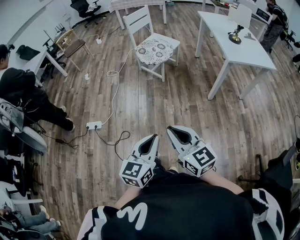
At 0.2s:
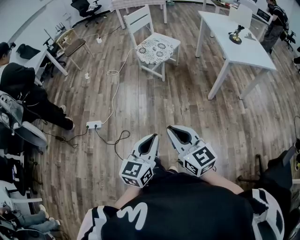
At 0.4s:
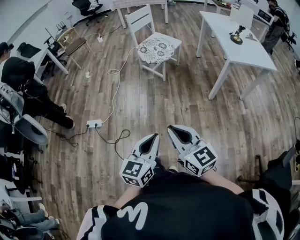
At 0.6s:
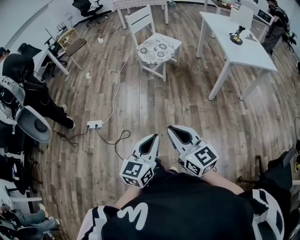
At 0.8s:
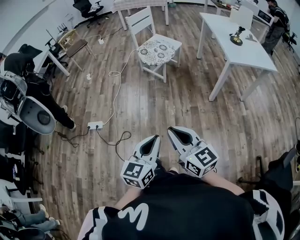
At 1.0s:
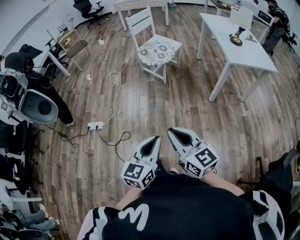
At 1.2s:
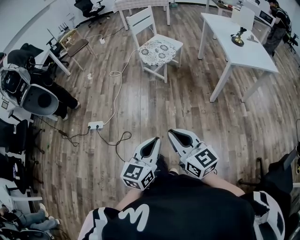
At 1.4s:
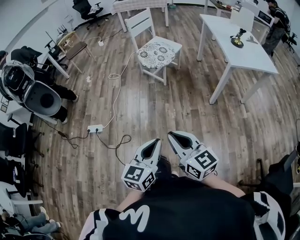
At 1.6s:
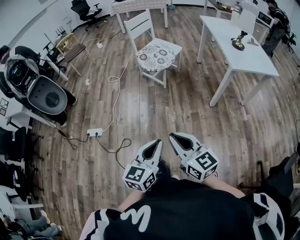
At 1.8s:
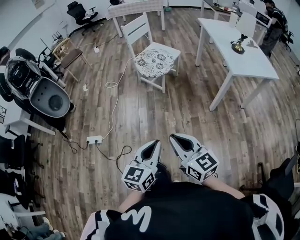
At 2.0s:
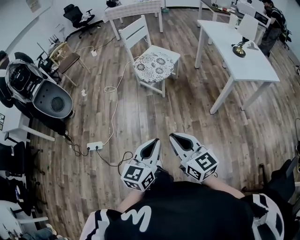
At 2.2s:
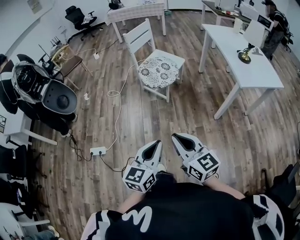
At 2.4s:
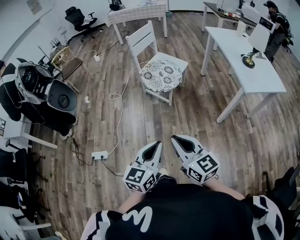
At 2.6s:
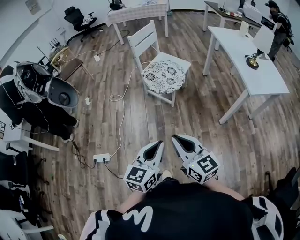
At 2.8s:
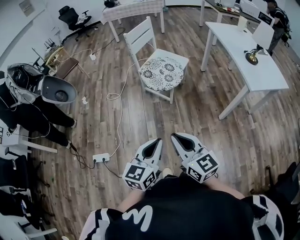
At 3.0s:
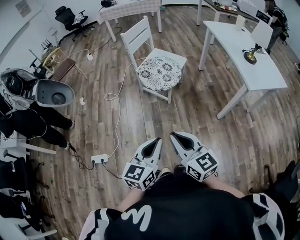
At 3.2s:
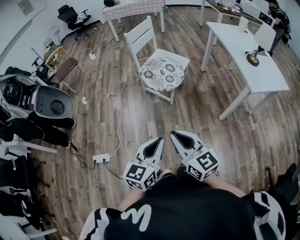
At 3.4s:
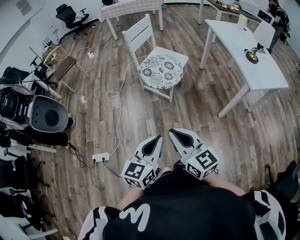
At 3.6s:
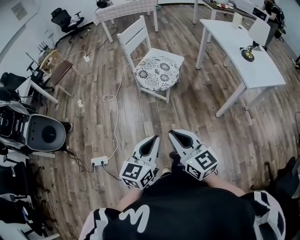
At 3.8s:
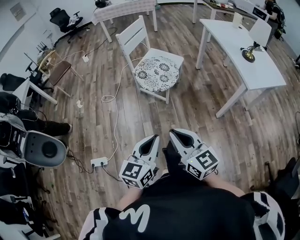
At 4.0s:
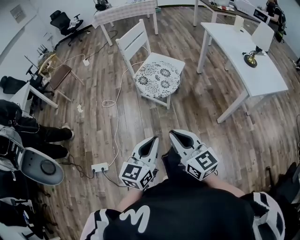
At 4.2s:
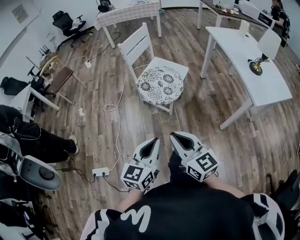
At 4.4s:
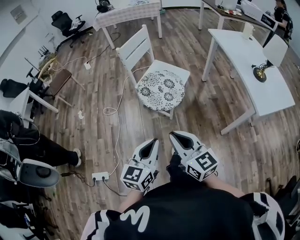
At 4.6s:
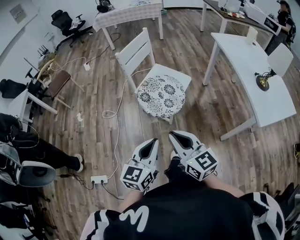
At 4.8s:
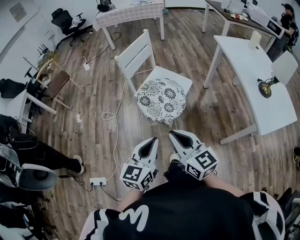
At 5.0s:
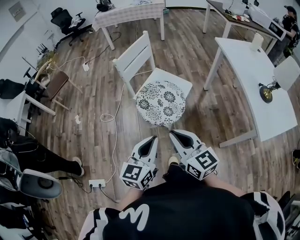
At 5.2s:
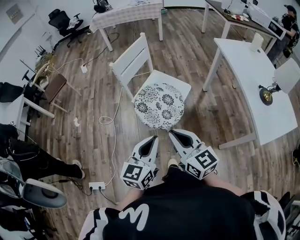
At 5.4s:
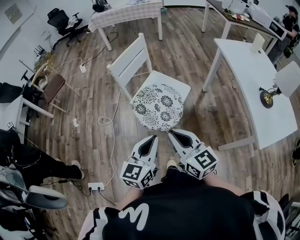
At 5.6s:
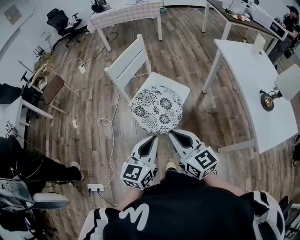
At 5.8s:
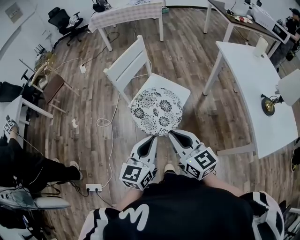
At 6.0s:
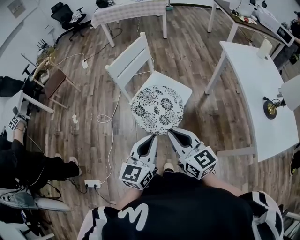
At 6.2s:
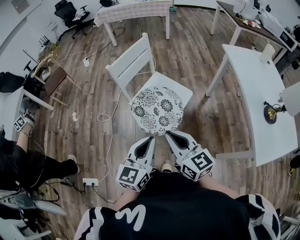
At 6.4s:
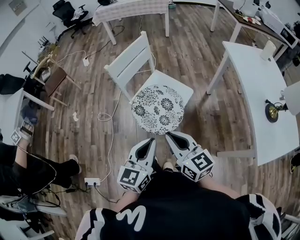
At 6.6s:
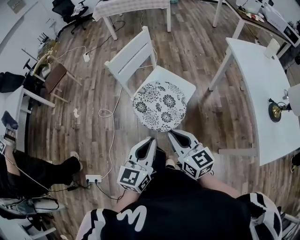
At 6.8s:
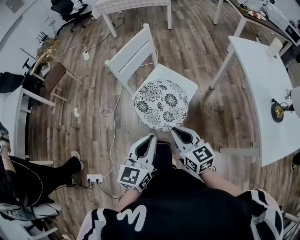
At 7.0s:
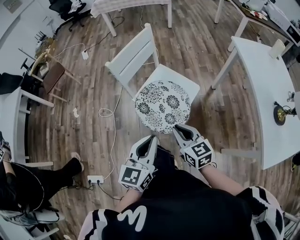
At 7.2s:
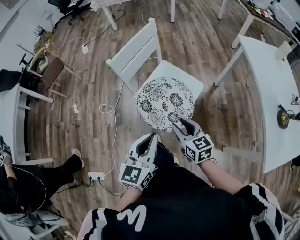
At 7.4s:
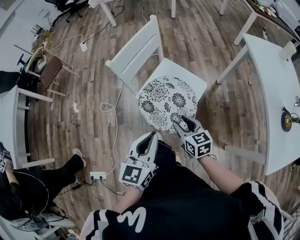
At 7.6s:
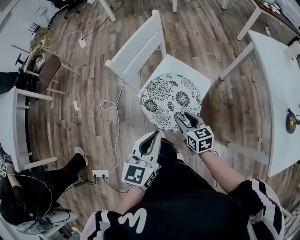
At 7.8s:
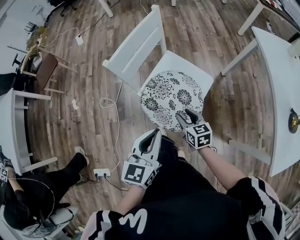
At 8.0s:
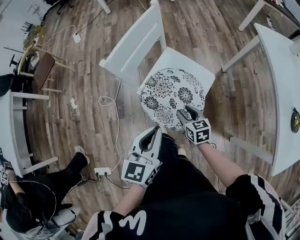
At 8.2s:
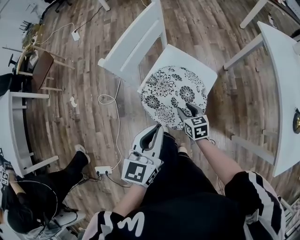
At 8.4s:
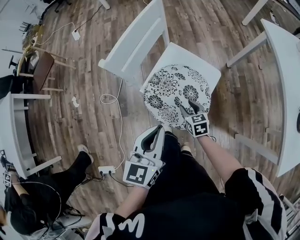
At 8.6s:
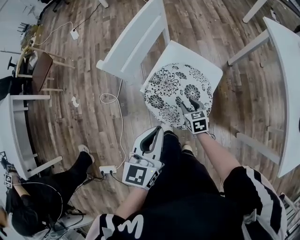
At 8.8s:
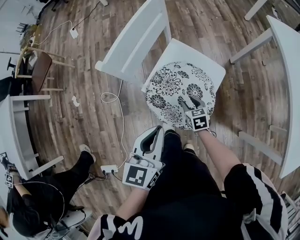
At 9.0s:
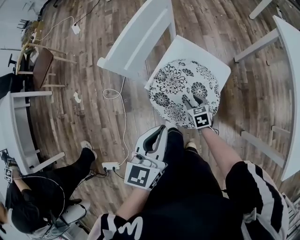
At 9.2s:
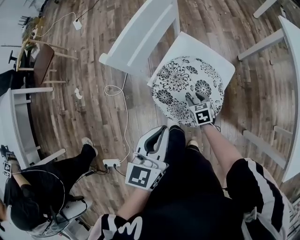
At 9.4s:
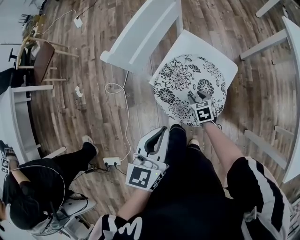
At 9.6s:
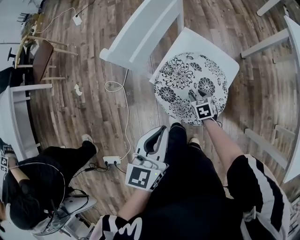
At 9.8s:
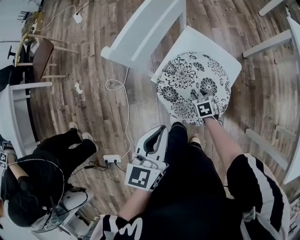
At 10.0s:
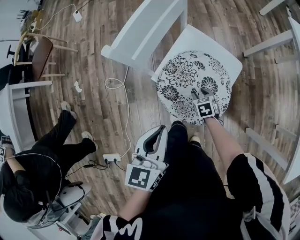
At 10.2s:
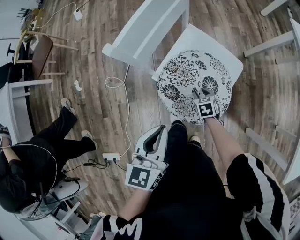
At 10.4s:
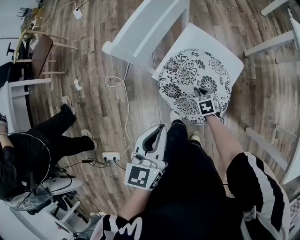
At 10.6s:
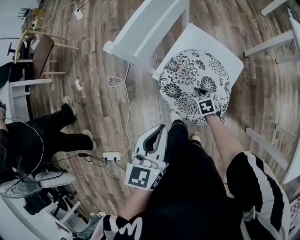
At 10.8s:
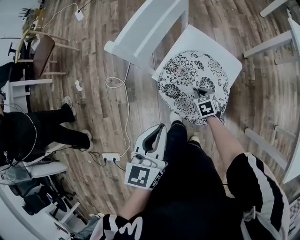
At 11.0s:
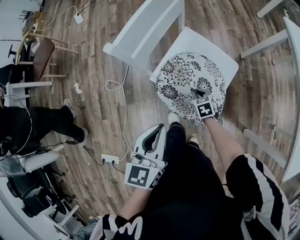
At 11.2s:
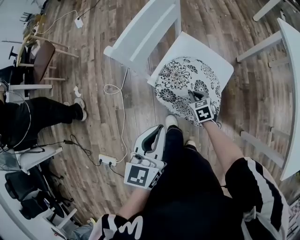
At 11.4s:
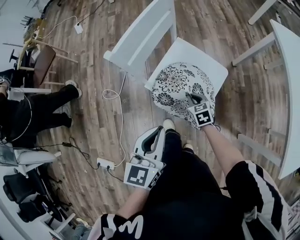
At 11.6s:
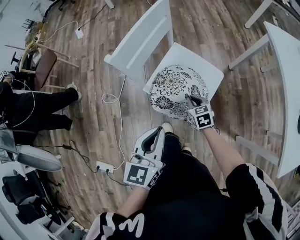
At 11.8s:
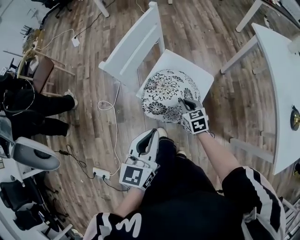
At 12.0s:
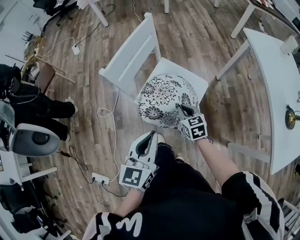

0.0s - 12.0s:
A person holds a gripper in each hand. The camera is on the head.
0.0s - 1.6s: The grippers move only a little.
1.6s - 3.0s: Both grippers move forward, roughly 25 cm.
3.0s - 4.4s: Both grippers move forward, approximately 20 cm.
4.4s - 6.0s: The grippers both shift forward by some 25 cm.
6.0s - 7.6s: The right gripper moves downward and forward, roughly 30 cm, rotates approximately 30 degrees, and opens; the left gripper travels forward, downward and to the left by about 15 cm.
7.6s - 9.0s: The left gripper travels forward and downward by approximately 10 cm; the right gripper heads downward and forward, covering about 20 cm.
9.0s - 10.4s: The left gripper ends up roughly 5 cm from where it was; the right gripper shifts roughly 5 cm downward, and closes.
10.4s - 12.0s: The left gripper travels upward and to the right by about 10 cm; the right gripper is displaced upward by roughly 20 cm, and swivels about 20 degrees.

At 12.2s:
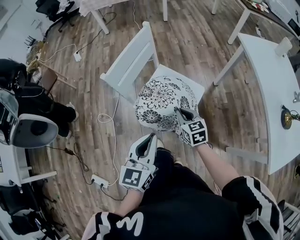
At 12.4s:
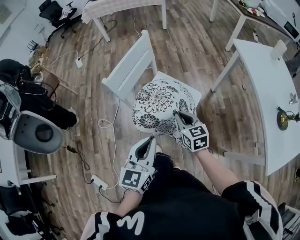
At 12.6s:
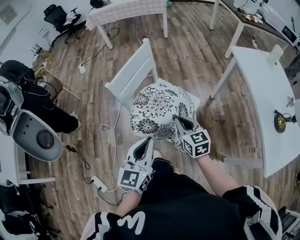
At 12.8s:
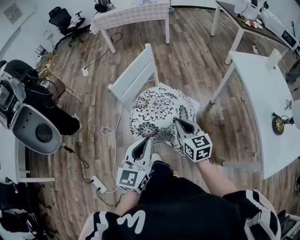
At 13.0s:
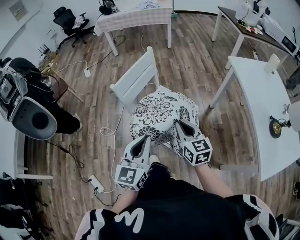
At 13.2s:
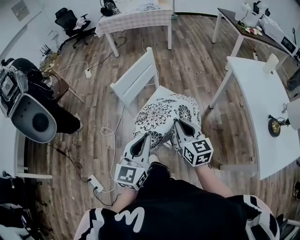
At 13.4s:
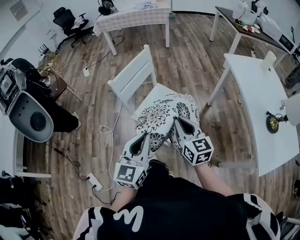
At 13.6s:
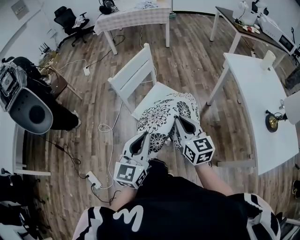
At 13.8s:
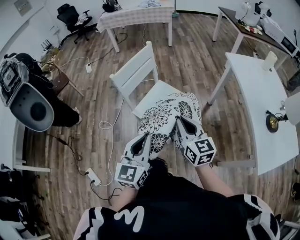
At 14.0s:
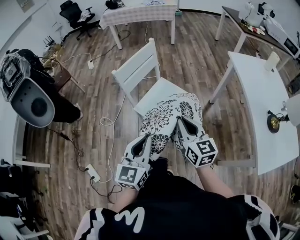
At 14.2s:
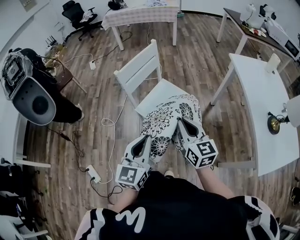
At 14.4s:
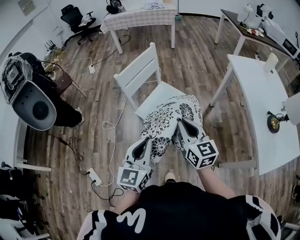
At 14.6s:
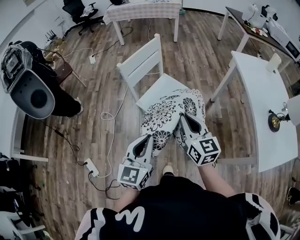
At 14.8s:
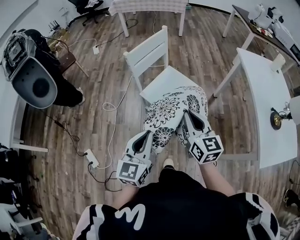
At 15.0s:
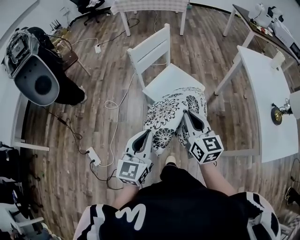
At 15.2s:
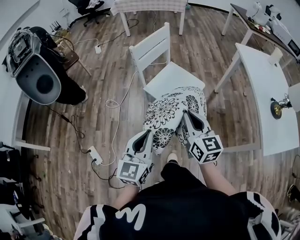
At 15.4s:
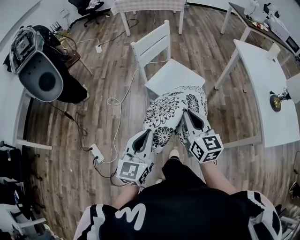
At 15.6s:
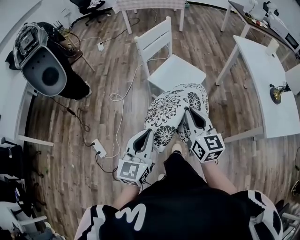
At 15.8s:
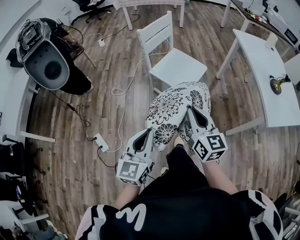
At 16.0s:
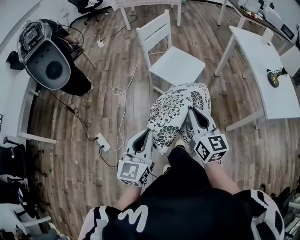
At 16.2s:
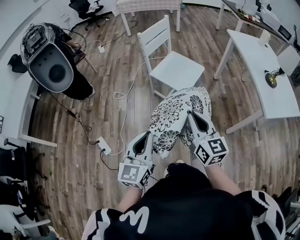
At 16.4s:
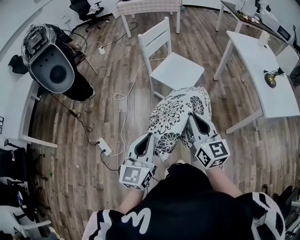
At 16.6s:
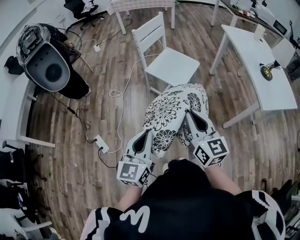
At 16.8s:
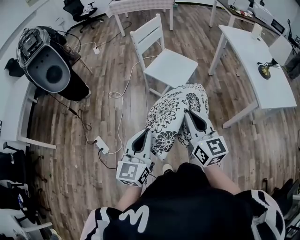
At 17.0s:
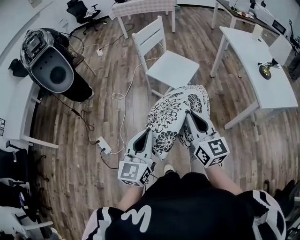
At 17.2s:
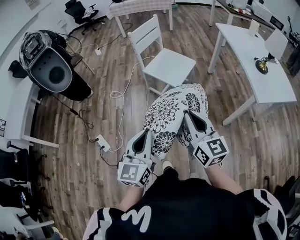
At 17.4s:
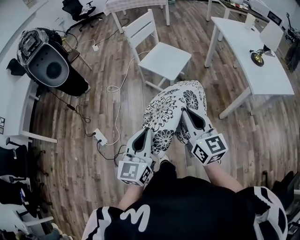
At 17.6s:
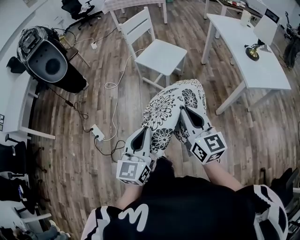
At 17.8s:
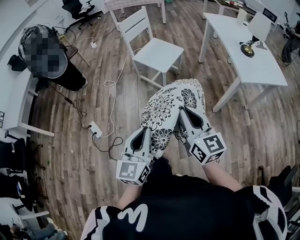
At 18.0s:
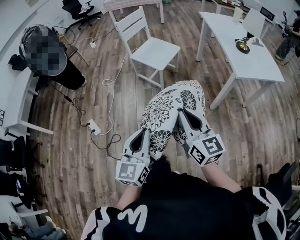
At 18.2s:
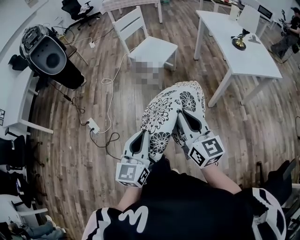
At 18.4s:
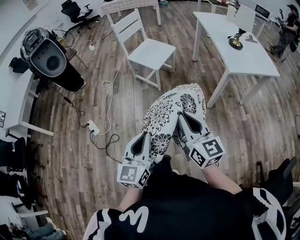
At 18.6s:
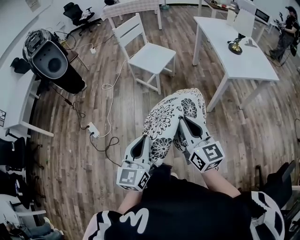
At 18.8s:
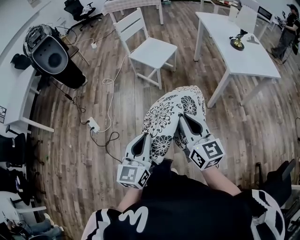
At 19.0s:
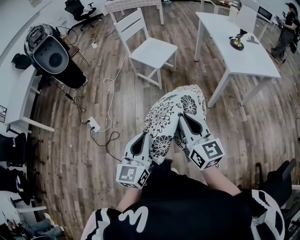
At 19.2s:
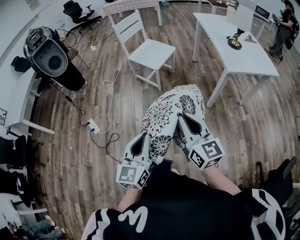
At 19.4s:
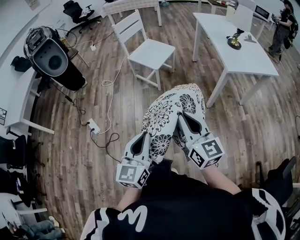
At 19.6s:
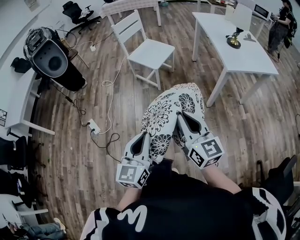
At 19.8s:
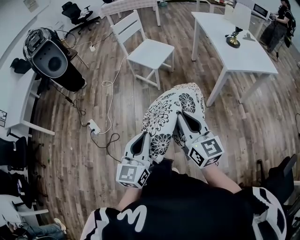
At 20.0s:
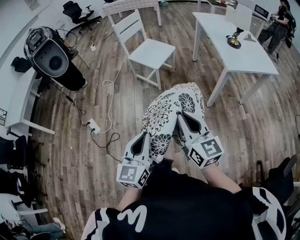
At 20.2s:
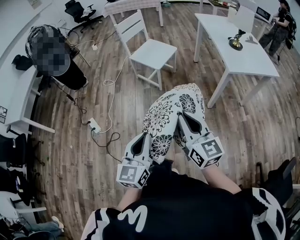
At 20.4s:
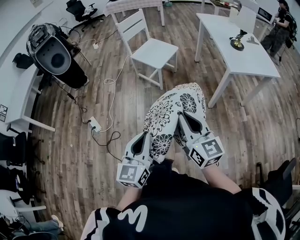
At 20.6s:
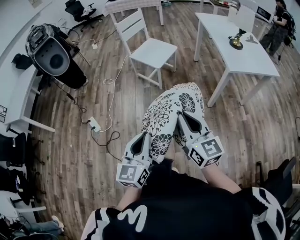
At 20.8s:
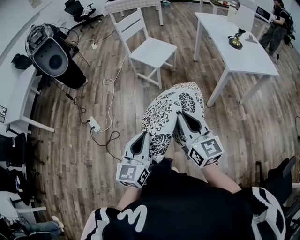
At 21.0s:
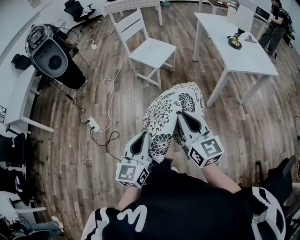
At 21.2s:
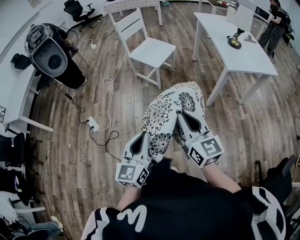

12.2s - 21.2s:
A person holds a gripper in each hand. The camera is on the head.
12.2s - 13.8s: The left gripper moves backward and upward, approximately 10 cm. Meanwhile the right gripper shifts some 25 cm upward and backward, and swivels roughly 20 degrees.
13.8s - 15.2s: Both grippers move backward and to the left, some 15 cm.
15.2s - 16.6s: The grippers both shift backward by about 25 cm.
16.6s - 18.2s: Both grippers travel together backward and to the right, approximately 30 cm.
18.2s - 19.8s: The left gripper moves roughly 5 cm.
19.8s - 21.2s: The grippers move only a little.

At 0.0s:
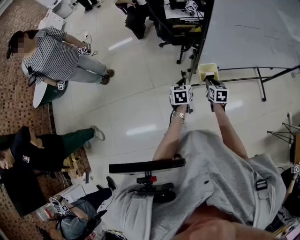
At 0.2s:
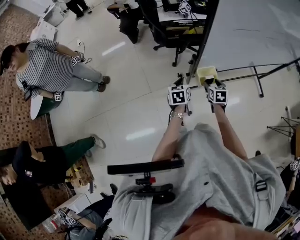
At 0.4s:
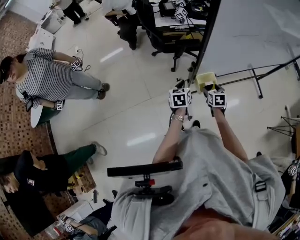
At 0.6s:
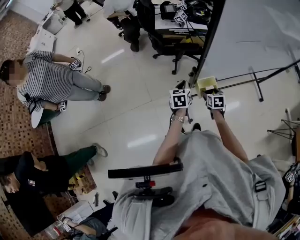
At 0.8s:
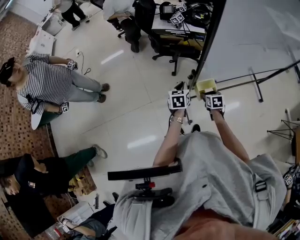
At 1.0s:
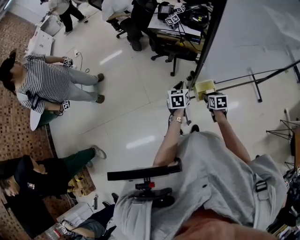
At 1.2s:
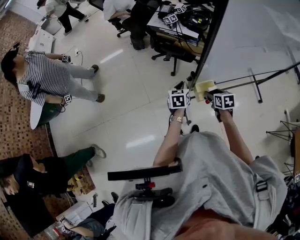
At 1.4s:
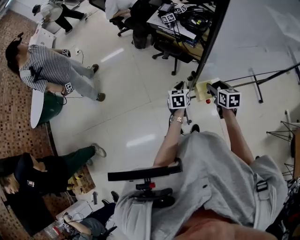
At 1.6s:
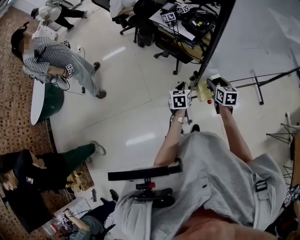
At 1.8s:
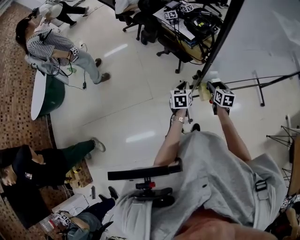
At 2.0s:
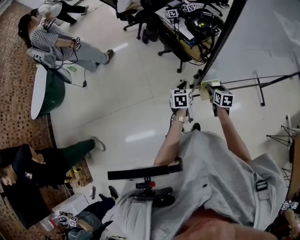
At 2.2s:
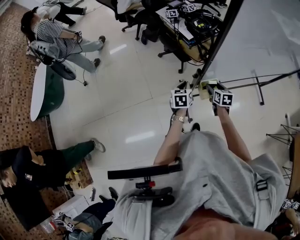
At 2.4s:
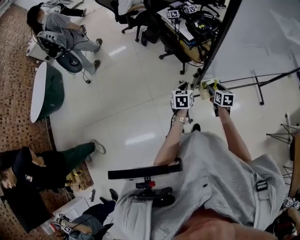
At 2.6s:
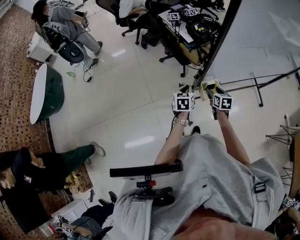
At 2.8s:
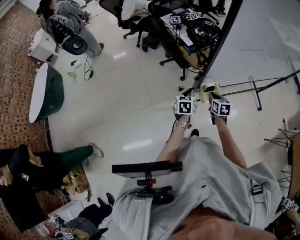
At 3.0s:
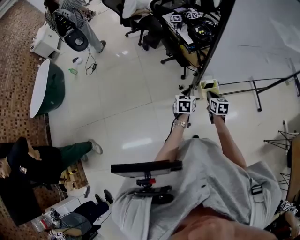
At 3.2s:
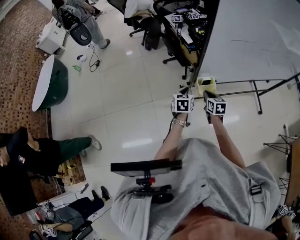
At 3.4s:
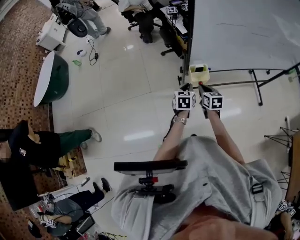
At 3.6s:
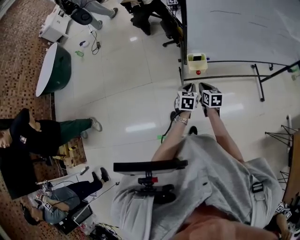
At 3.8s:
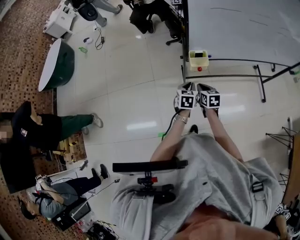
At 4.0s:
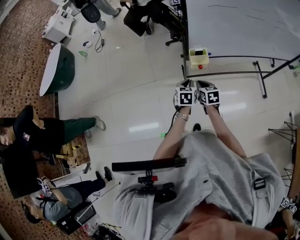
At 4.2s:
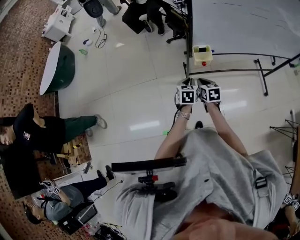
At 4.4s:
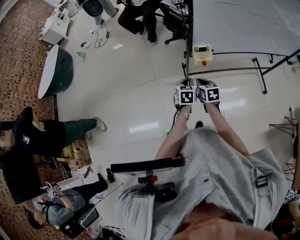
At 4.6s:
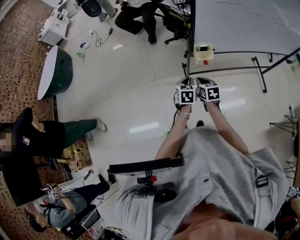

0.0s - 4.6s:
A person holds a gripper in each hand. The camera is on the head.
0.0s - 1.6s: The left gripper travels forward by about 10 cm; the right gripper moves forward and upward, approximately 10 cm, and opens its fingers.
1.6s - 3.0s: The right gripper travels backward and downward by roughly 10 cm, and closes; the left gripper travels backward by roughly 5 cm.
3.0s - 4.6s: The left gripper moves backward, roughly 20 cm, while the right gripper shifts roughly 20 cm backward and to the left.
